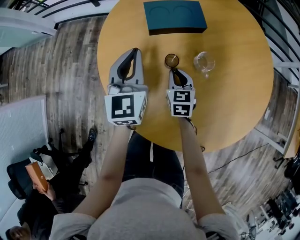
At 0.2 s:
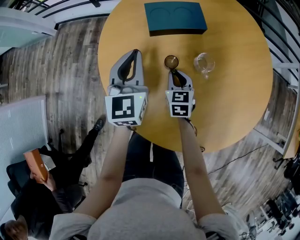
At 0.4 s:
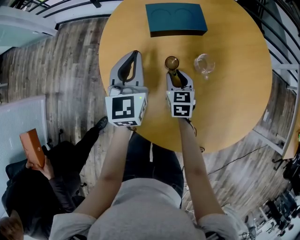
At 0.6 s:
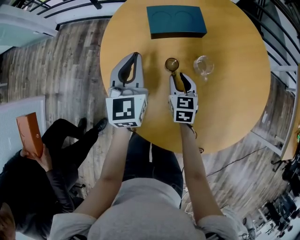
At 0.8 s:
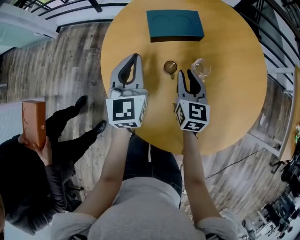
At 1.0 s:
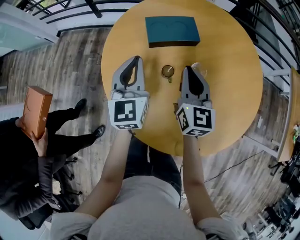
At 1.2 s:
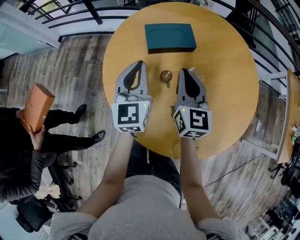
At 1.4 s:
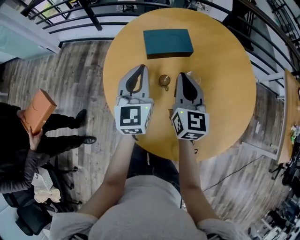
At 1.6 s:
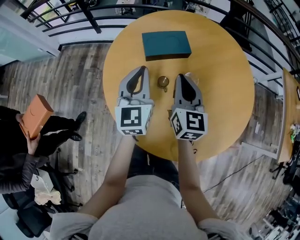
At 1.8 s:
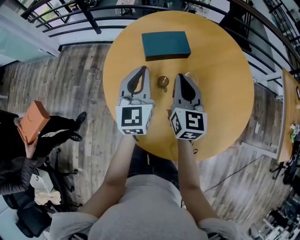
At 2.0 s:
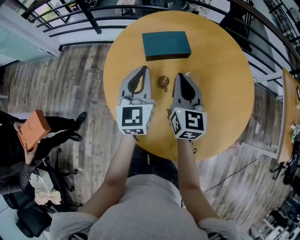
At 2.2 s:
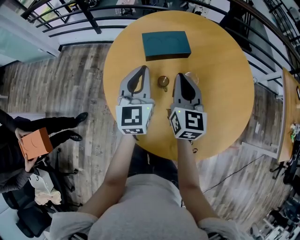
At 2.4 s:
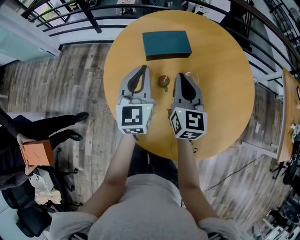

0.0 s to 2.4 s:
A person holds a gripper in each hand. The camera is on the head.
0.0 to 1.2 s: The left gripper heads upward, covering about 5 cm. The right gripper is displaced upward by approximately 20 cm, and rotates some 30 degrees.
1.2 to 2.4 s: There are only small adjustments of the grippers.

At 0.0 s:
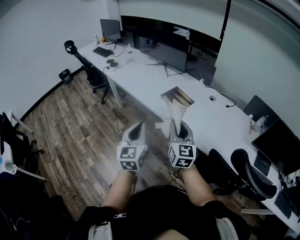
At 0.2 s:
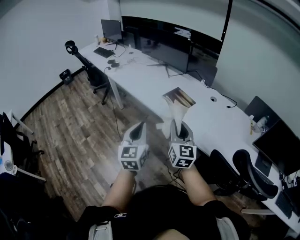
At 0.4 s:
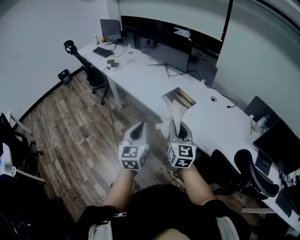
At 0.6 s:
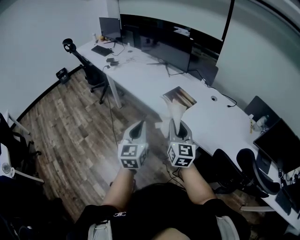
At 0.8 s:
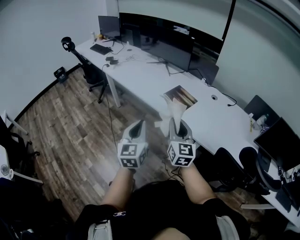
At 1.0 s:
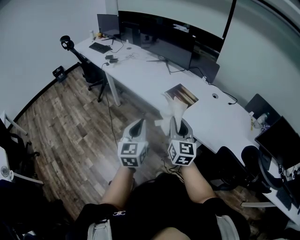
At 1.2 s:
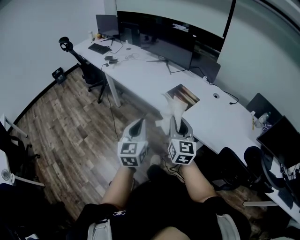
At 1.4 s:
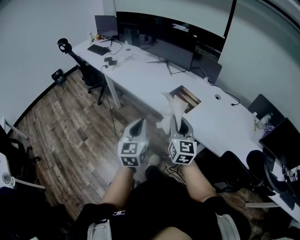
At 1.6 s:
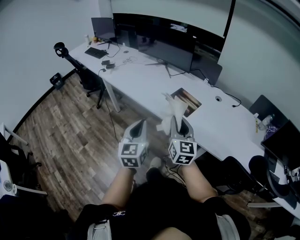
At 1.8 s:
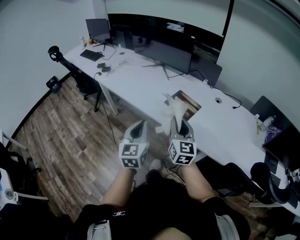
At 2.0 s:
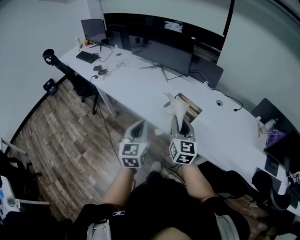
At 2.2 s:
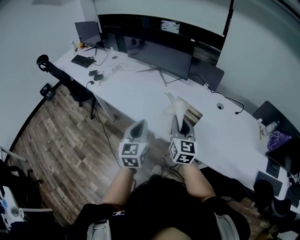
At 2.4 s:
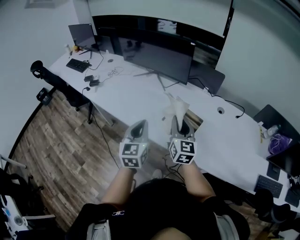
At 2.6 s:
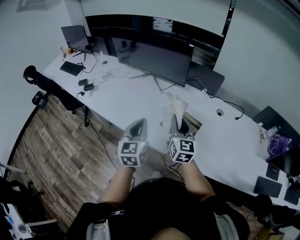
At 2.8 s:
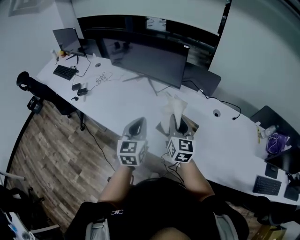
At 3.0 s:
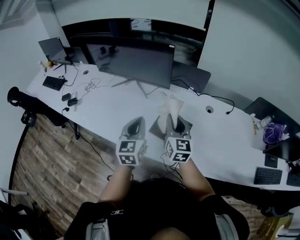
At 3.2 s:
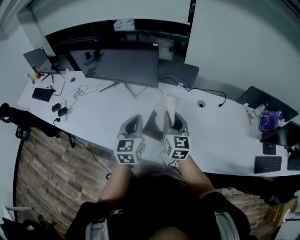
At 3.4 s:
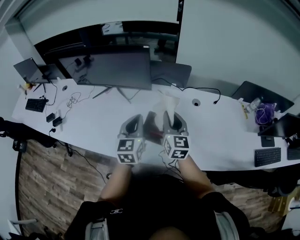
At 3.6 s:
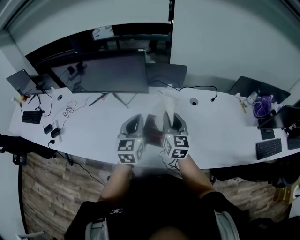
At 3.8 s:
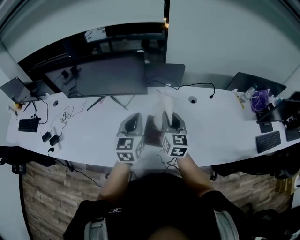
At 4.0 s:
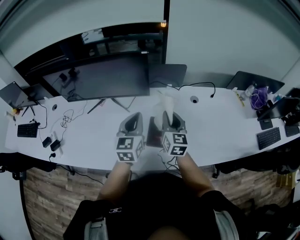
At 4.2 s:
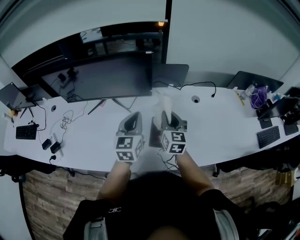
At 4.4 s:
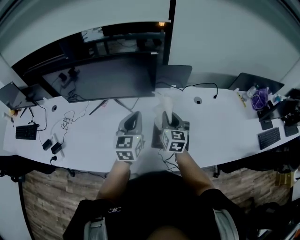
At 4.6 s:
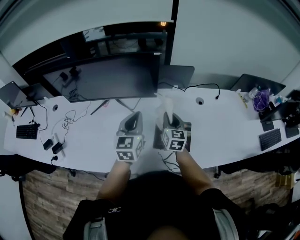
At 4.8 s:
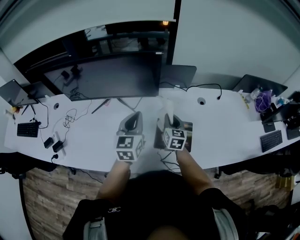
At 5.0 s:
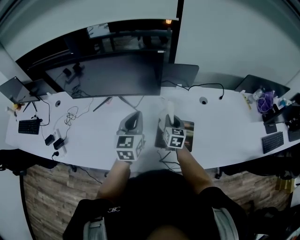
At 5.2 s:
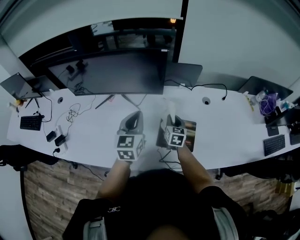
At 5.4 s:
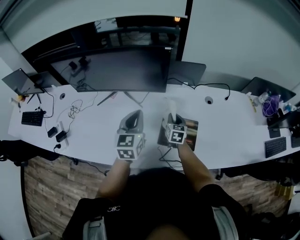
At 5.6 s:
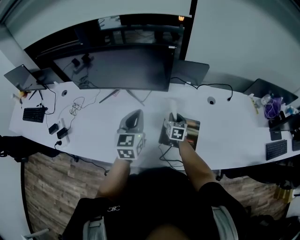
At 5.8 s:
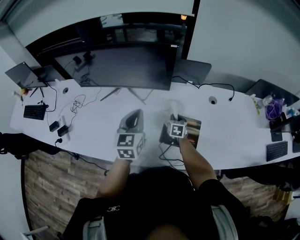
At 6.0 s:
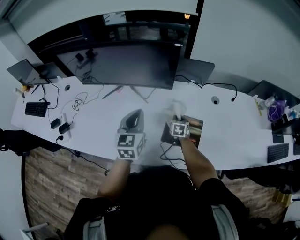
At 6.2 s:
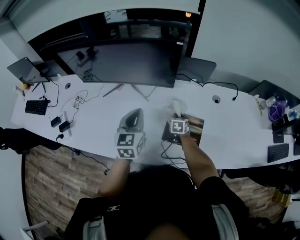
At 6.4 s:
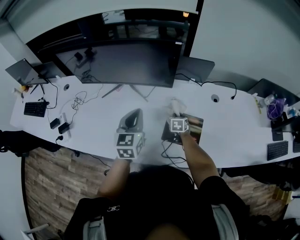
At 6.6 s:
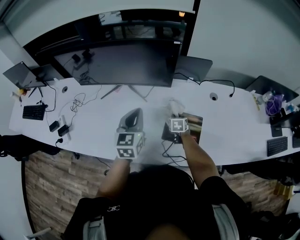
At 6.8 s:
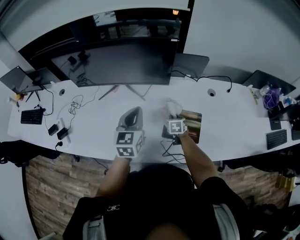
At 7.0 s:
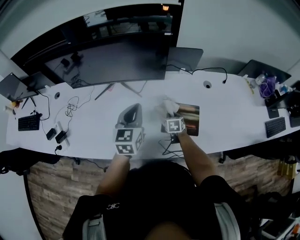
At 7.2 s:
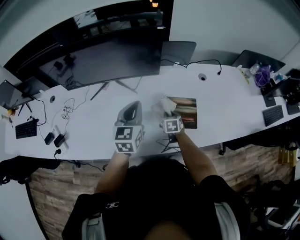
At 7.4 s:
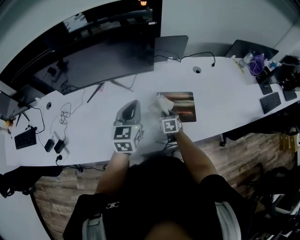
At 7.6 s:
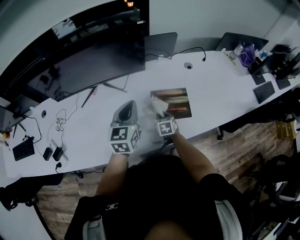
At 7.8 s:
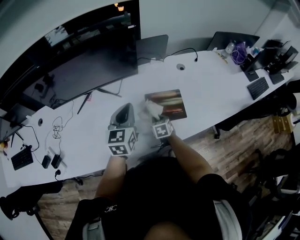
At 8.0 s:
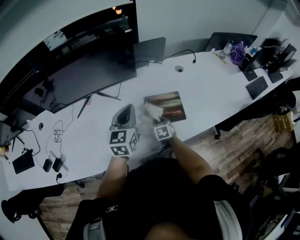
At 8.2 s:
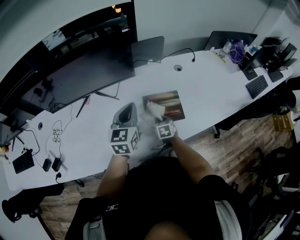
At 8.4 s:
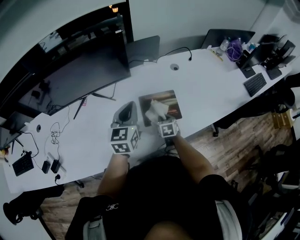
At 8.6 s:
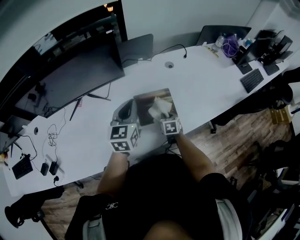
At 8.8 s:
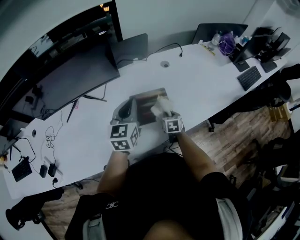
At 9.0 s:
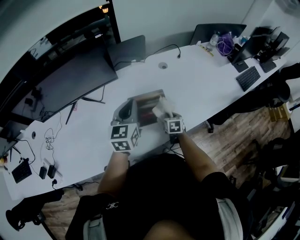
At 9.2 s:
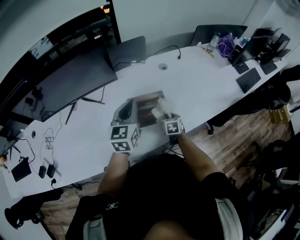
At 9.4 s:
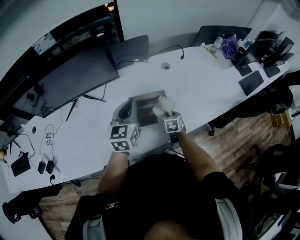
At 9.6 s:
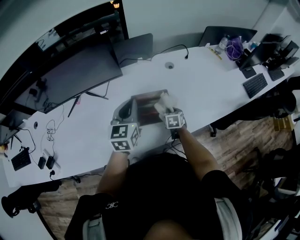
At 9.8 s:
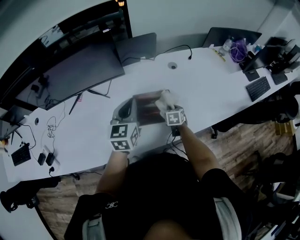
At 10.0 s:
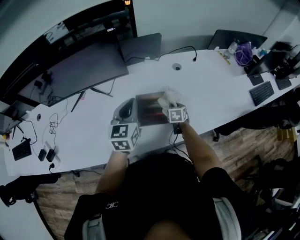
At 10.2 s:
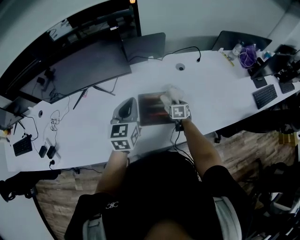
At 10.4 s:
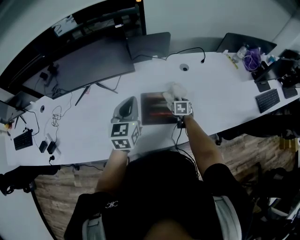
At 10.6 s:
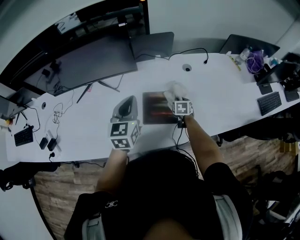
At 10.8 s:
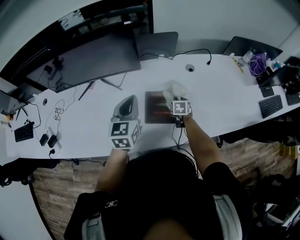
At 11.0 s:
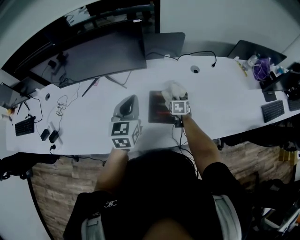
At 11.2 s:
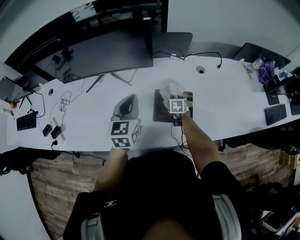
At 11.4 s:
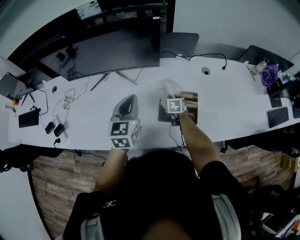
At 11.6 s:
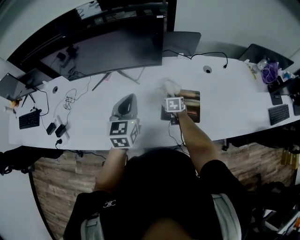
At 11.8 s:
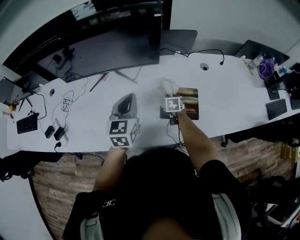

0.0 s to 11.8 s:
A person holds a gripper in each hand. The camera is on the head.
0.0 to 1.4 s: Both grippers move to the left, roughly 5 cm.
1.4 to 3.0 s: Both grippers travel together forward, about 25 cm.
3.0 to 4.4 s: The right gripper travels forward and downward by about 10 cm, and rotates about 20 degrees, while the left gripper moves forward, roughly 10 cm, and swivels roughly 20 degrees.
4.4 to 6.0 s: The right gripper is displaced downward by about 20 cm, and angles its fingers downward, by roughly 30 degrees. Meanwhile the left gripper shifts by roughly 5 cm.
6.0 to 7.4 s: The right gripper moves backward, about 10 cm.
7.4 to 8.8 s: Both grippers move to the right, approximately 10 cm.
8.8 to 10.4 s: The right gripper is displaced forward by some 10 cm.
10.4 to 11.8 s: The right gripper moves to the left, roughly 15 cm. Meanwhile the left gripper goes approximately 10 cm to the left.

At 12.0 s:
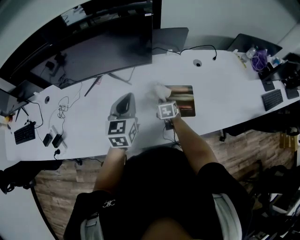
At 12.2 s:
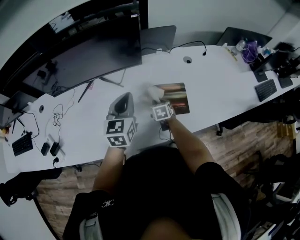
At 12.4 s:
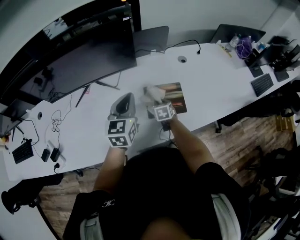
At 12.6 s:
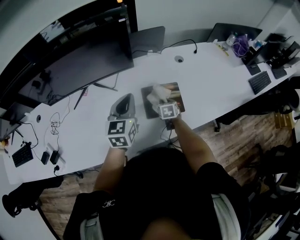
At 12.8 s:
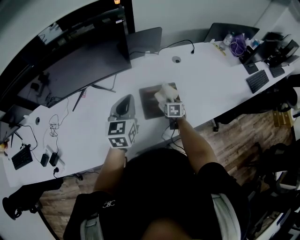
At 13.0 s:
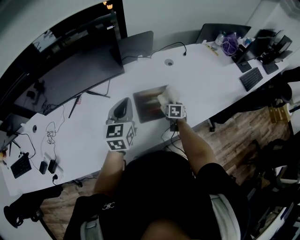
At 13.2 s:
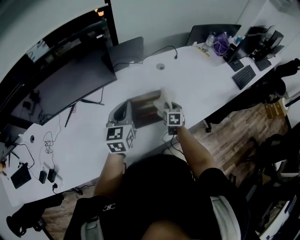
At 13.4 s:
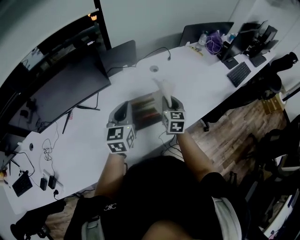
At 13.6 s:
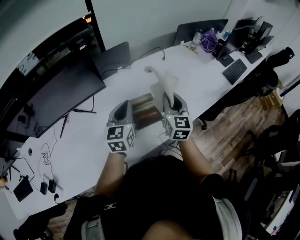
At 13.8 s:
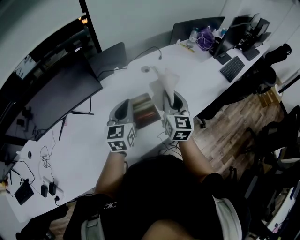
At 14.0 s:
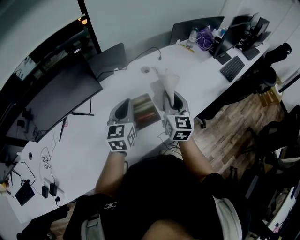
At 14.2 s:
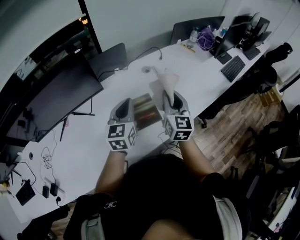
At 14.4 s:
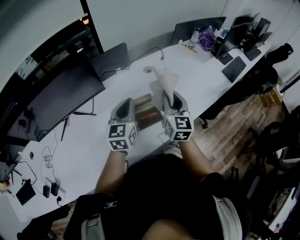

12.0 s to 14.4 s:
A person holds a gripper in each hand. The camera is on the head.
12.0 to 13.2 s: The right gripper heads to the right, covering some 20 cm, and changes its angle by approximately 30 degrees; the left gripper moves to the right, some 10 cm.
13.2 to 14.4 s: The right gripper shifts about 25 cm upward, and tilts its fingers approximately 30 degrees upward; the left gripper moves to the right, about 5 cm.

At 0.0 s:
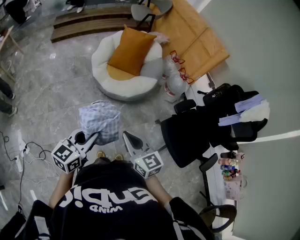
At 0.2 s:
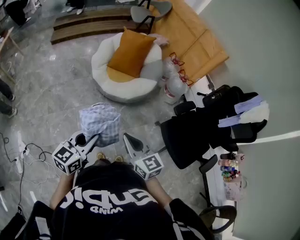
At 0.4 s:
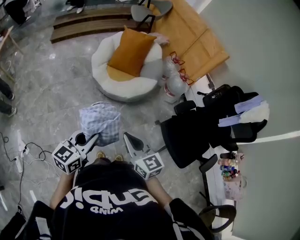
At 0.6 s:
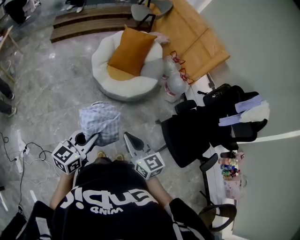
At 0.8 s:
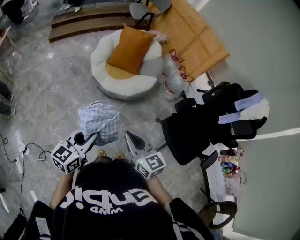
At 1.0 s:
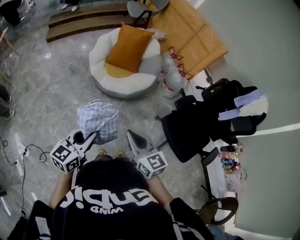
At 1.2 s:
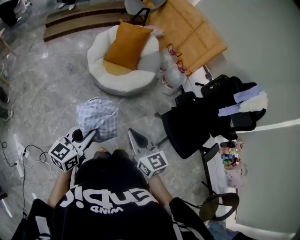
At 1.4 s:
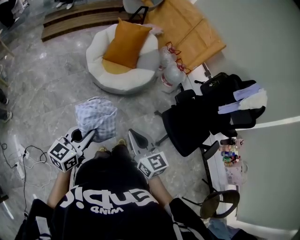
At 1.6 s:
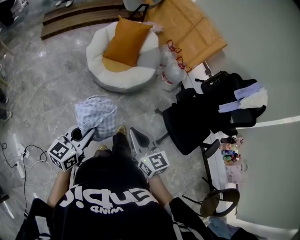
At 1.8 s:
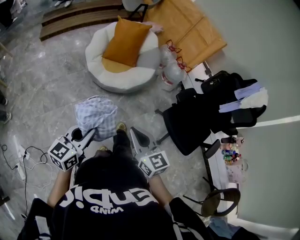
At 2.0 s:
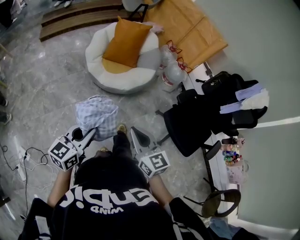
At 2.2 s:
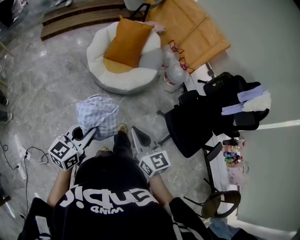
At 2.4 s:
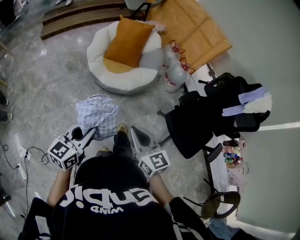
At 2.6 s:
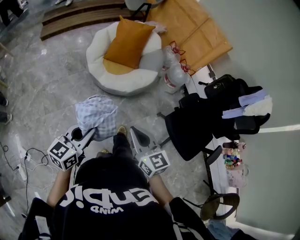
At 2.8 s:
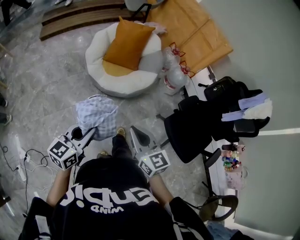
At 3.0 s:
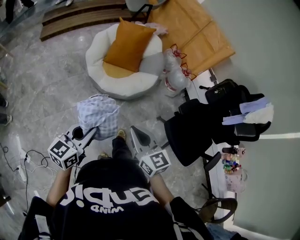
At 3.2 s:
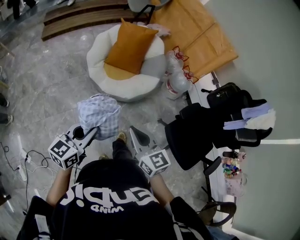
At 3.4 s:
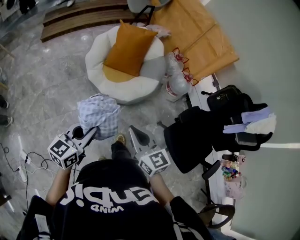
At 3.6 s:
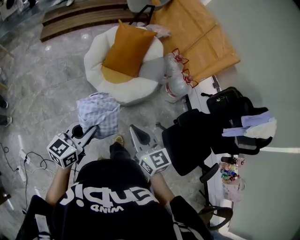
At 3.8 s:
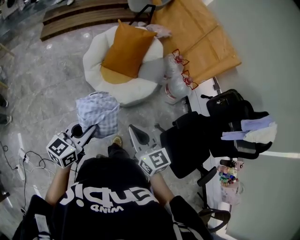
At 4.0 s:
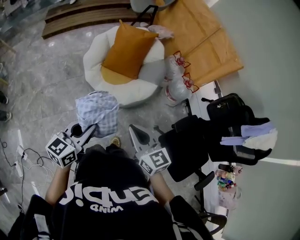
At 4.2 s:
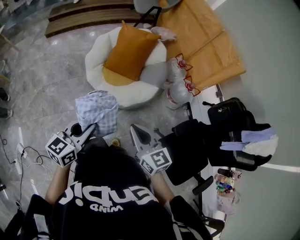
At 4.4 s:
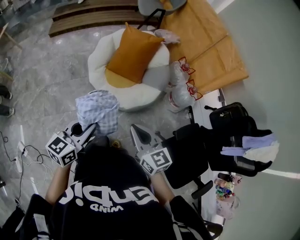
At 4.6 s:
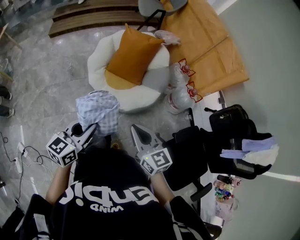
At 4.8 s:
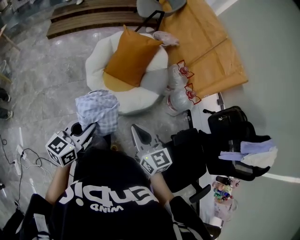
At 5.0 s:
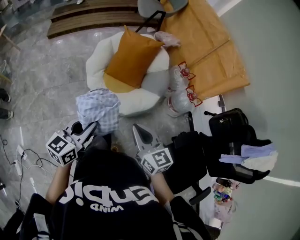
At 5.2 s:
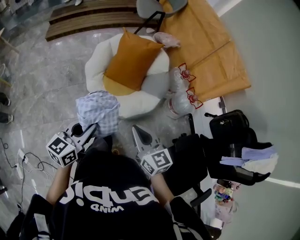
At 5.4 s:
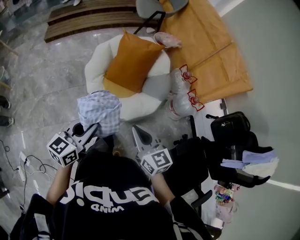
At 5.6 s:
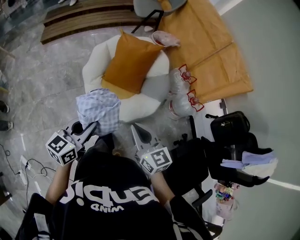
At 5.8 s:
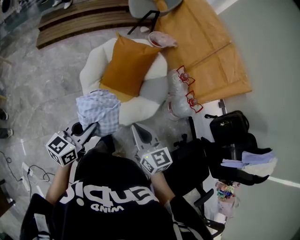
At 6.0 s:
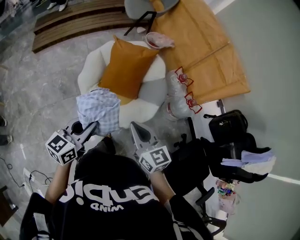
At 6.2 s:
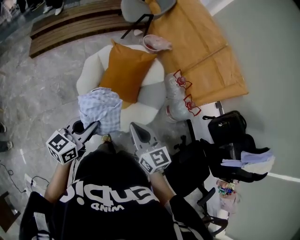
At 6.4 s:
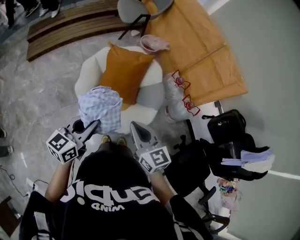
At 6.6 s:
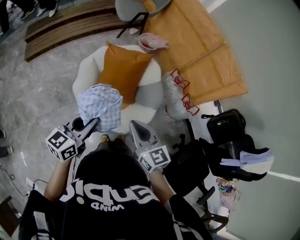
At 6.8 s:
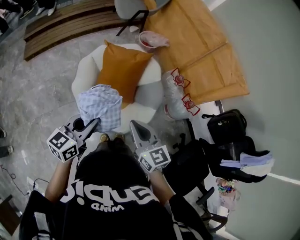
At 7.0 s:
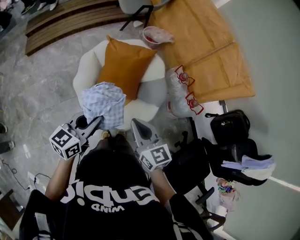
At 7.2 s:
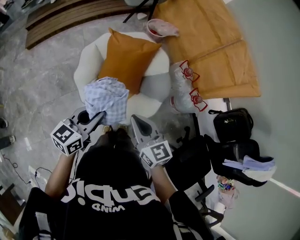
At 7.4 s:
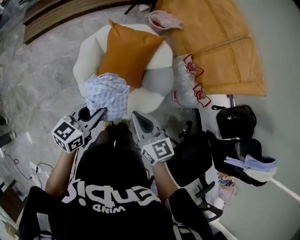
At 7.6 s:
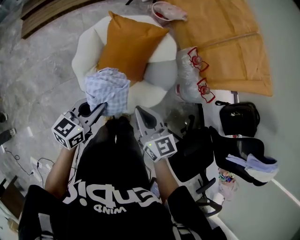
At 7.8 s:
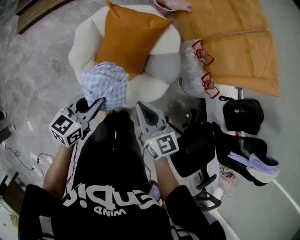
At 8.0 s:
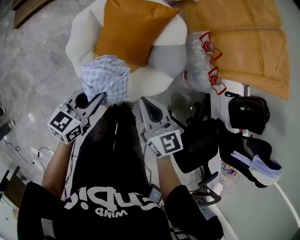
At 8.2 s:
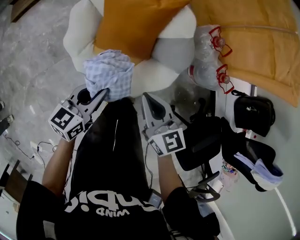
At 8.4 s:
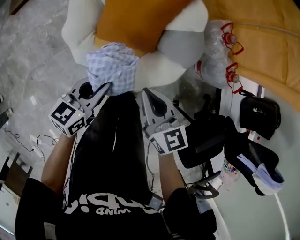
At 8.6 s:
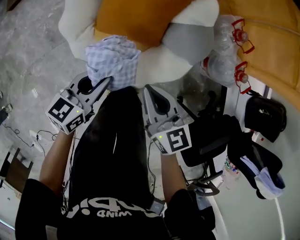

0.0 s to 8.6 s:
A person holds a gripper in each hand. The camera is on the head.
0.0 to 1.4 s: The left gripper is displaced to the left by roughly 5 cm.
1.4 to 2.8 s: The grippers both shift forward by roughly 10 cm.
2.8 to 4.4 s: Both grippers move forward, about 20 cm.
4.4 to 5.8 s: Both grippers travel together forward, some 20 cm.
5.8 to 7.2 s: The grippers both shift forward by roughly 15 cm.
7.2 to 8.6 s: The two grippers go roughly 25 cm downward.
